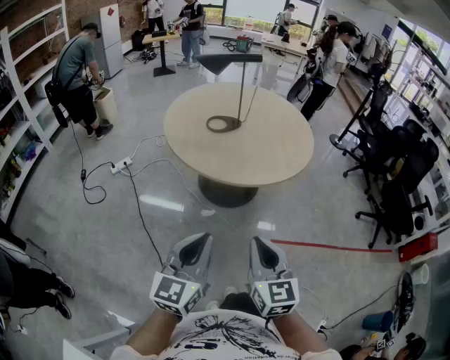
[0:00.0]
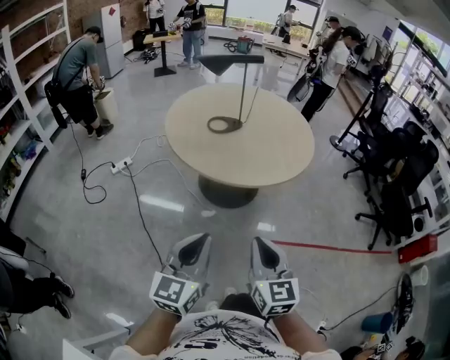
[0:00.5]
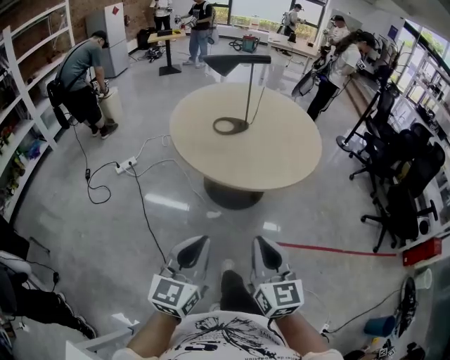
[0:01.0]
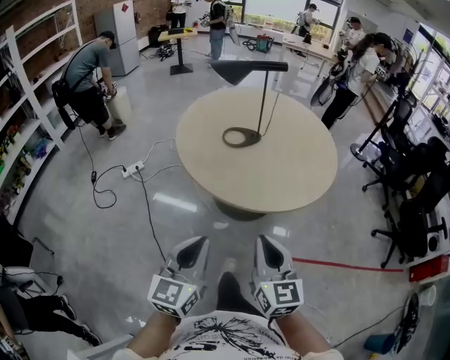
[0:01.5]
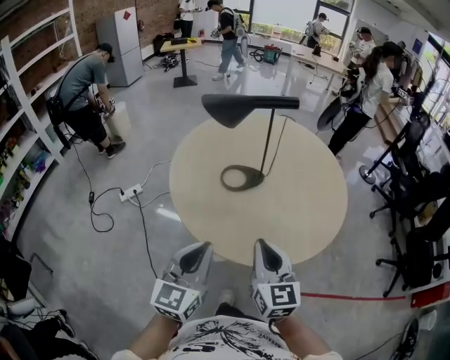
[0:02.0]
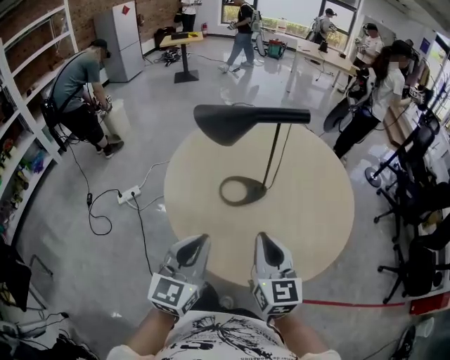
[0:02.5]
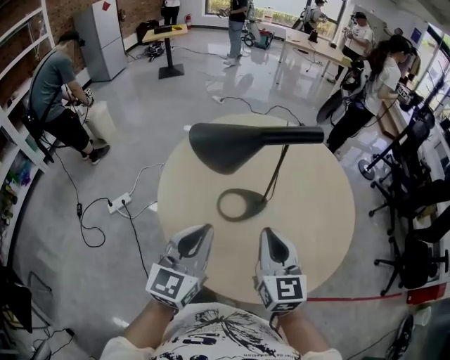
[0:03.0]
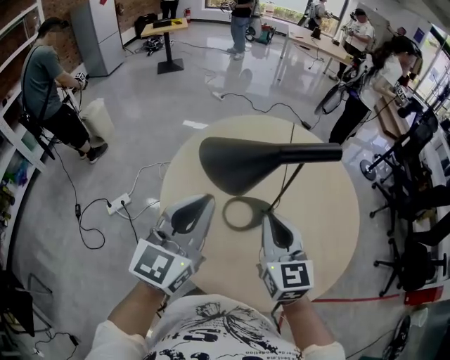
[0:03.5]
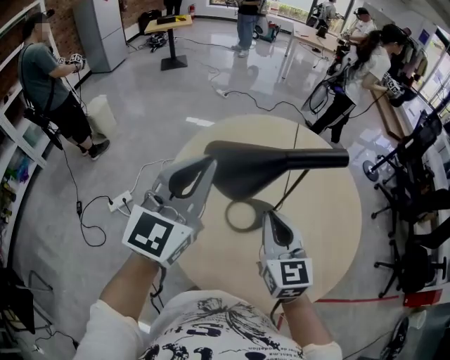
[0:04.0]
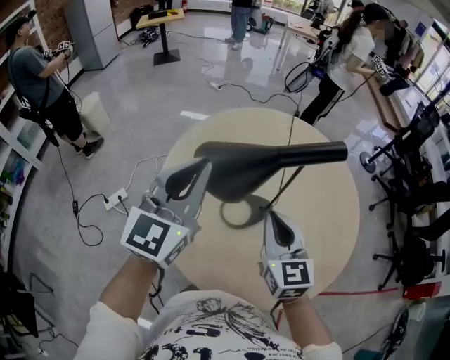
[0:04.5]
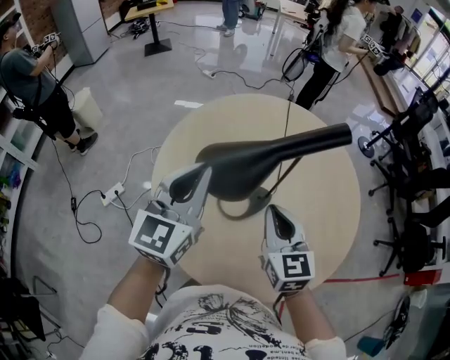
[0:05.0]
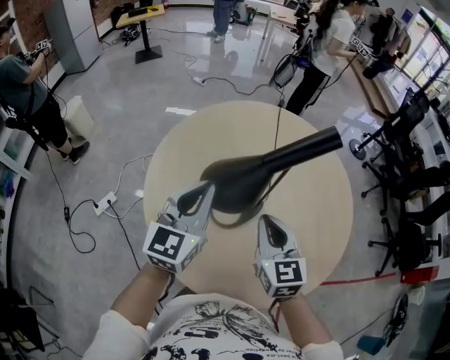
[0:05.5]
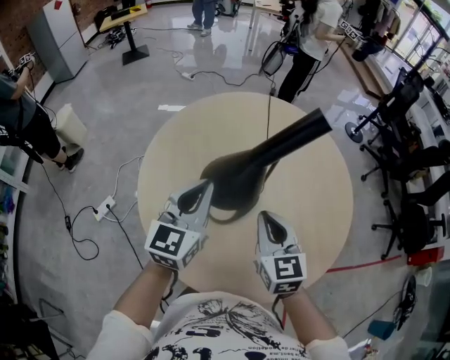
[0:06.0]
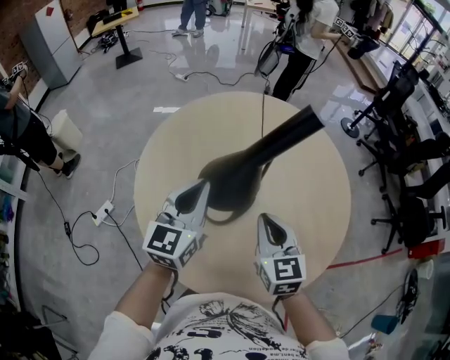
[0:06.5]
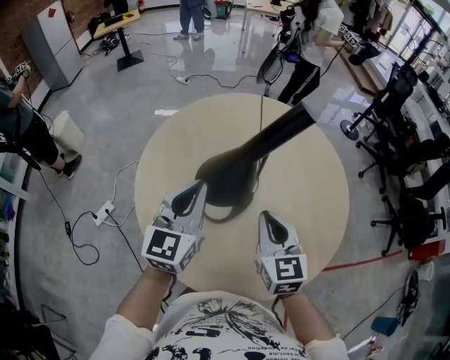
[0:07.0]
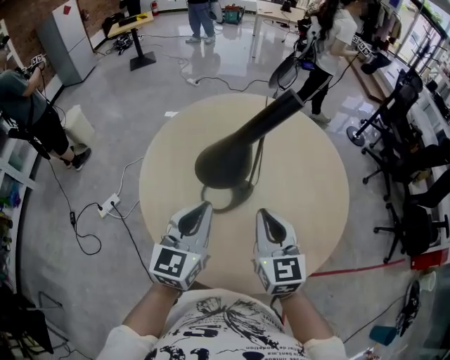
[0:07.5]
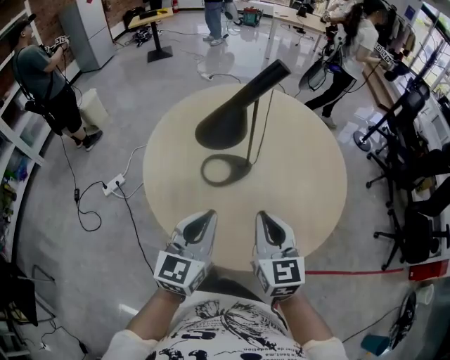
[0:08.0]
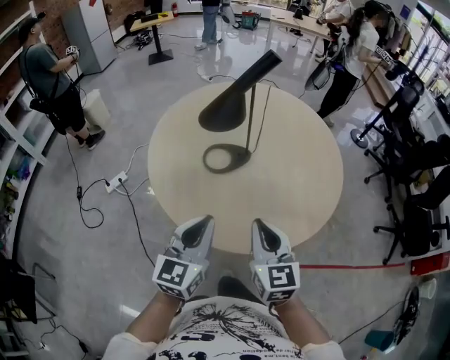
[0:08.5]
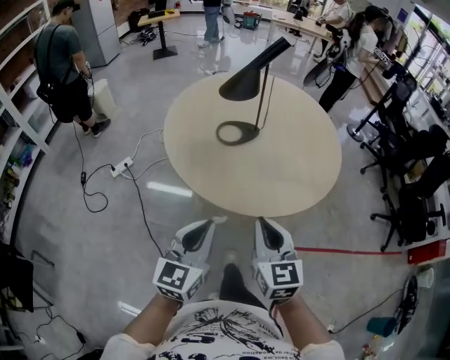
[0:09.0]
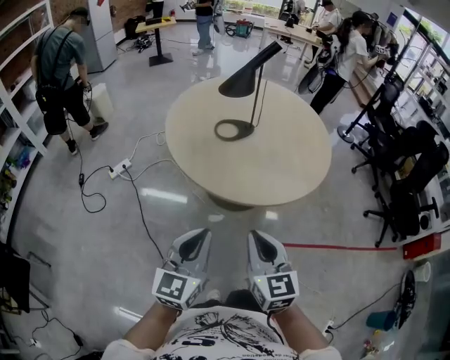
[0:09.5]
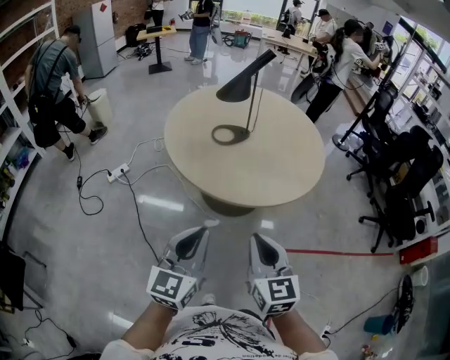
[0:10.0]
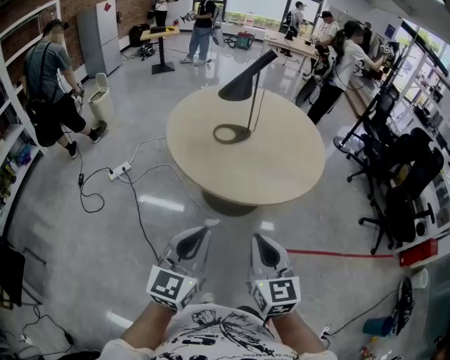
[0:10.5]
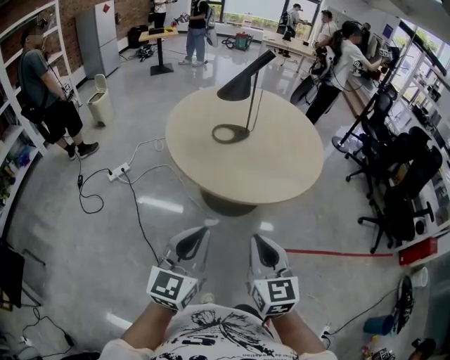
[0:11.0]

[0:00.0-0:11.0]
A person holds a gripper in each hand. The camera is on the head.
0:00.0 to 0:02.0: Both grippers move forward, approximately 35 cm.
0:02.0 to 0:03.5: The grippers both shift forward by roughly 30 cm.
0:03.5 to 0:05.5: The left gripper moves forward and downward, some 10 cm, while the right gripper travels downward by some 5 cm.
0:05.5 to 0:07.5: The left gripper travels backward and to the right by roughly 10 cm. The right gripper ends up about 5 cm from where it was.
0:07.5 to 0:09.0: The two grippers go about 35 cm backward.
0:09.0 to 0:11.0: Both grippers move backward, approximately 15 cm.

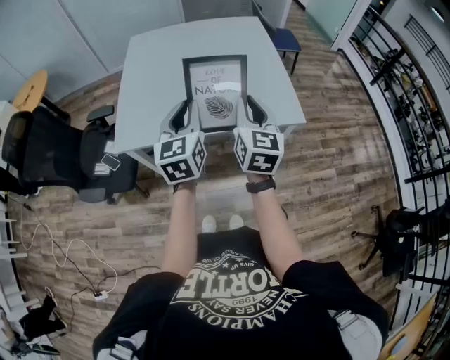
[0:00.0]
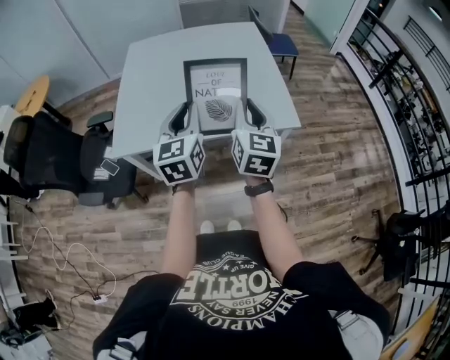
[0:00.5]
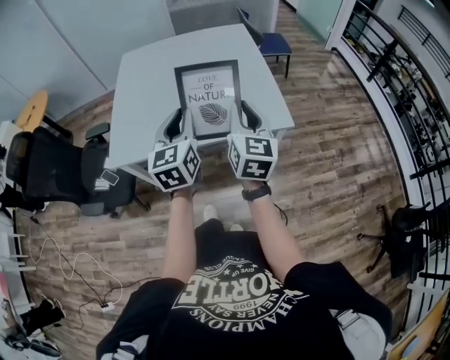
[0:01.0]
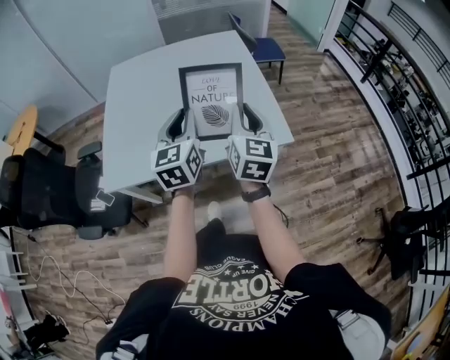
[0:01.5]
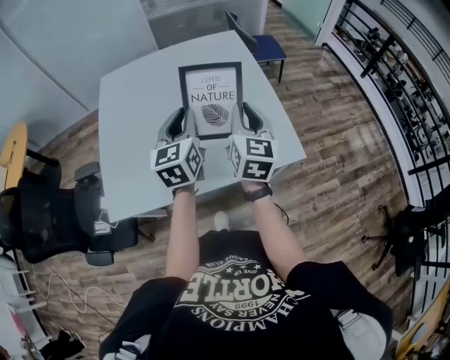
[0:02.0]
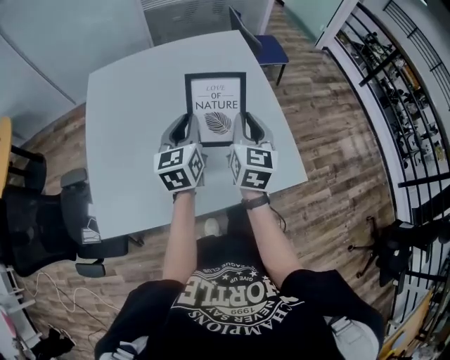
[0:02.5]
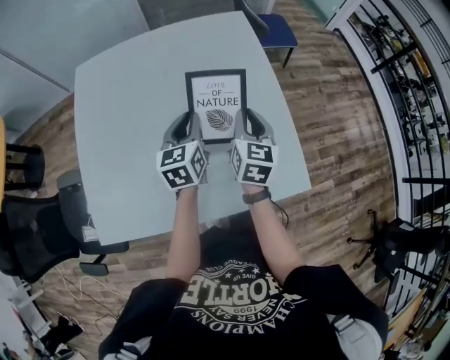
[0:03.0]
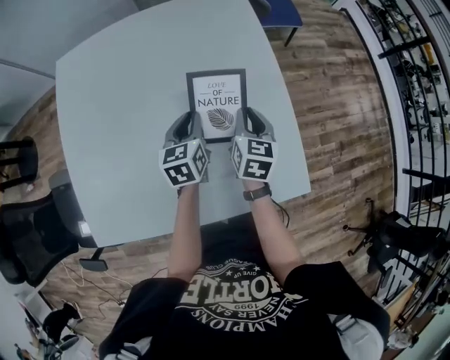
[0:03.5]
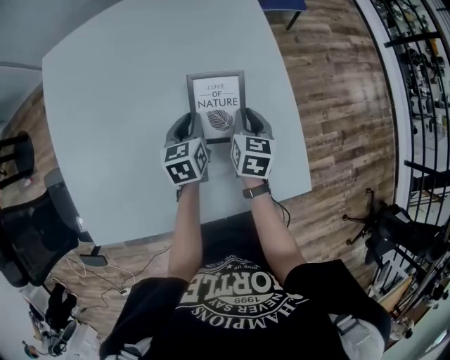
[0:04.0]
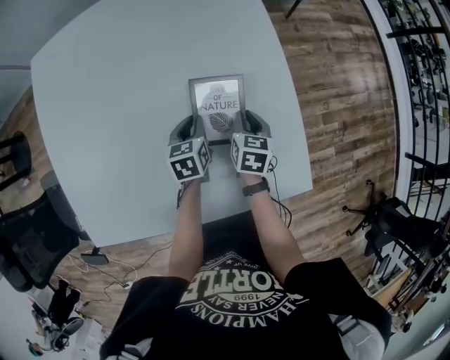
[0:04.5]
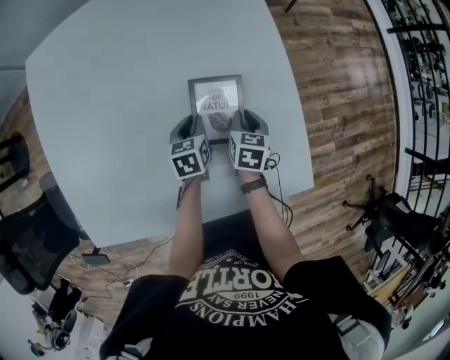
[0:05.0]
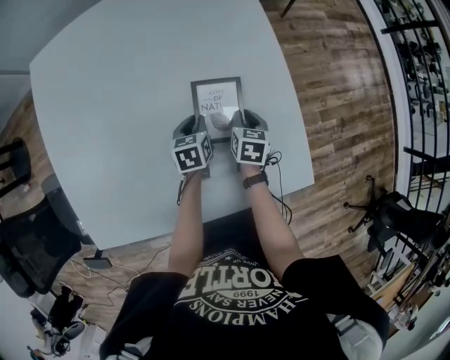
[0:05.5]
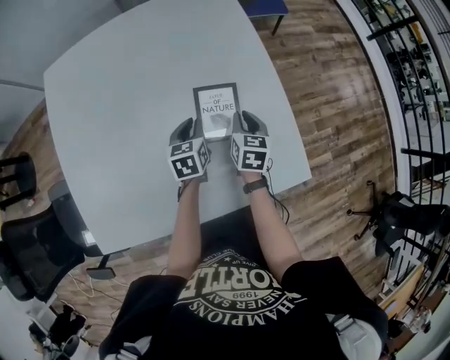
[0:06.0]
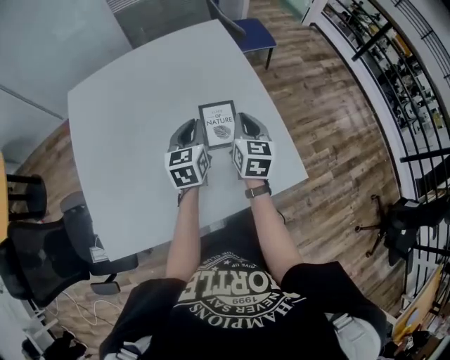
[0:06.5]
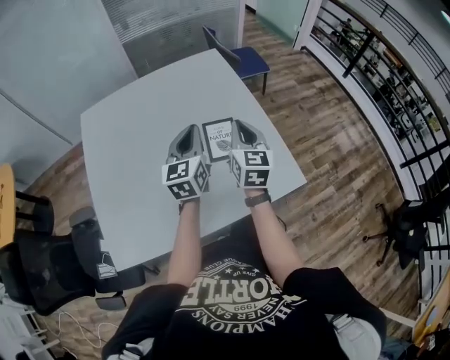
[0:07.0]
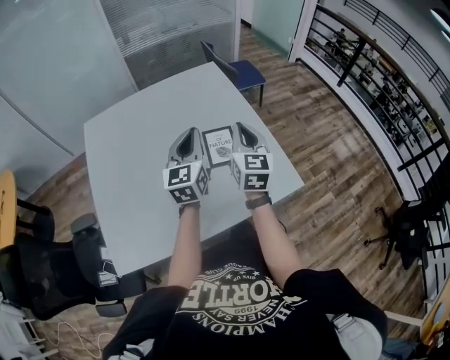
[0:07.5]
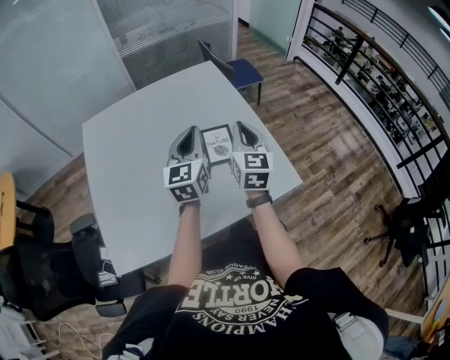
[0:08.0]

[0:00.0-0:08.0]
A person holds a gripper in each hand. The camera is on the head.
0:00.0 to 0:02.0: Both grippers move forward, approximately 25 cm.
0:02.0 to 0:04.0: The grippers both shift forward and downward by approximately 50 cm. The left gripper angles its fingers downward, by approximately 30 degrees, while the right gripper angles its fingers downward, by roughly 30 degrees.
0:04.0 to 0:06.0: The right gripper moves approximately 10 cm downward and comes back. The left gripper reaches about 10 cm downward, then returns.
0:06.0 to 0:08.0: The grippers both shift upward and backward by approximately 35 cm. The right gripper points its fingers roughly 30 degrees further upward. Meanwhile the left gripper points its fingers some 40 degrees further upward.

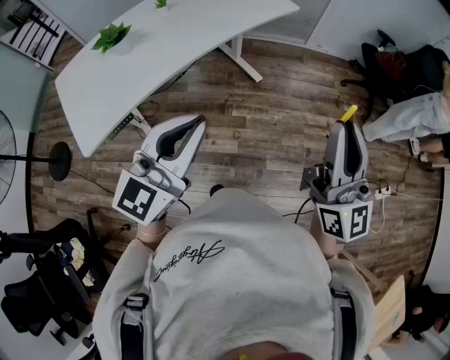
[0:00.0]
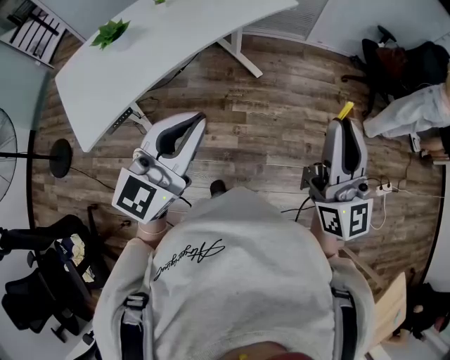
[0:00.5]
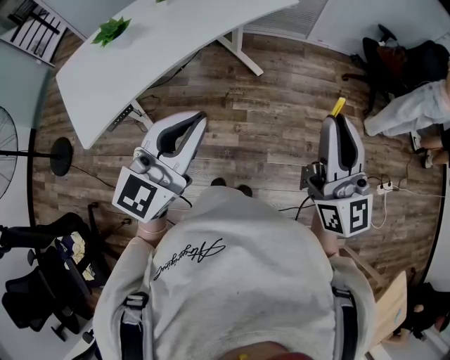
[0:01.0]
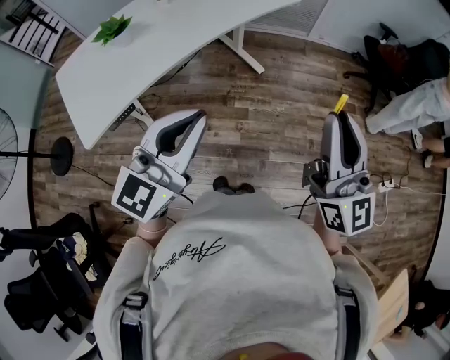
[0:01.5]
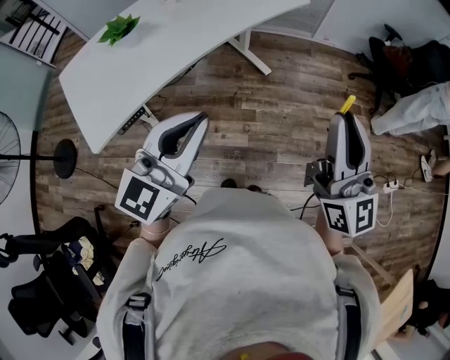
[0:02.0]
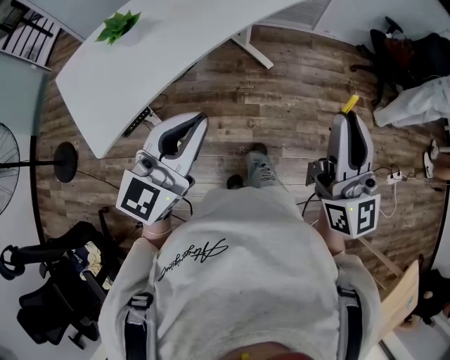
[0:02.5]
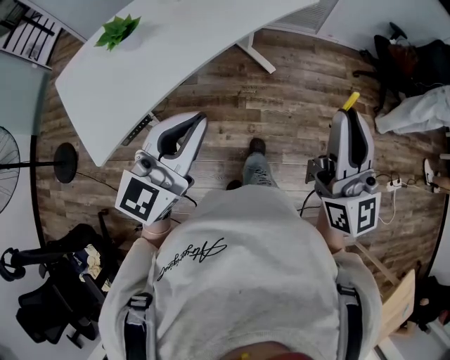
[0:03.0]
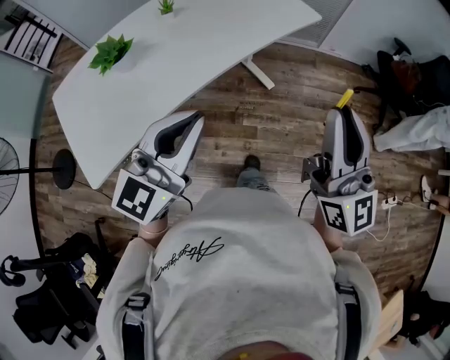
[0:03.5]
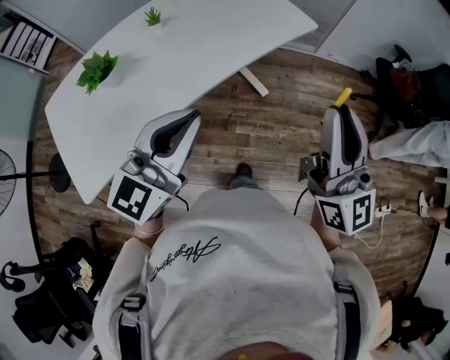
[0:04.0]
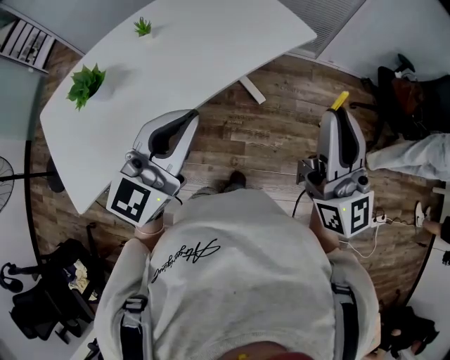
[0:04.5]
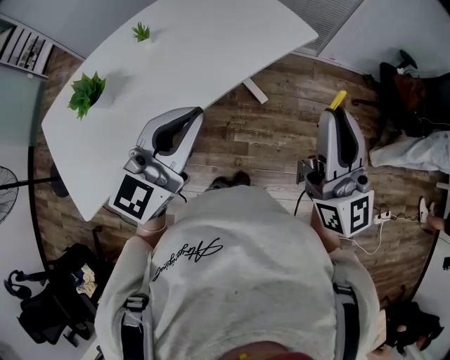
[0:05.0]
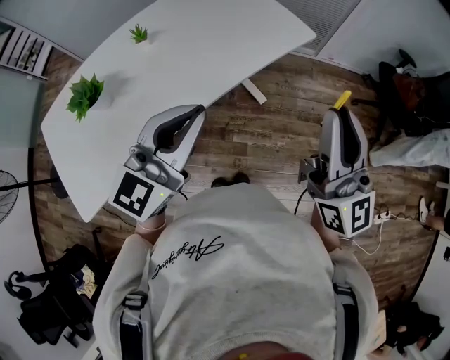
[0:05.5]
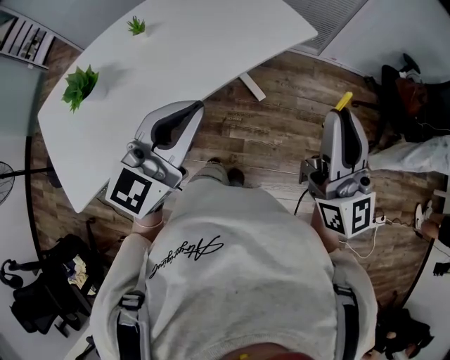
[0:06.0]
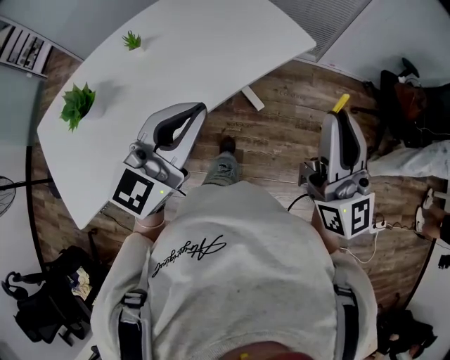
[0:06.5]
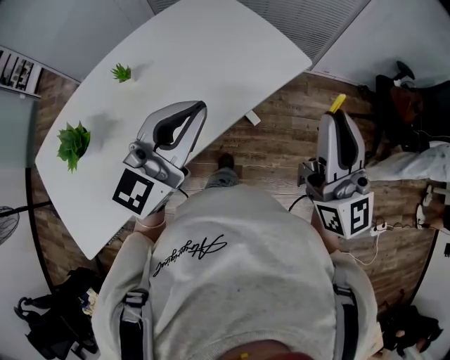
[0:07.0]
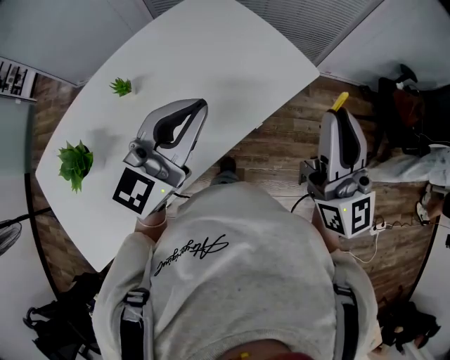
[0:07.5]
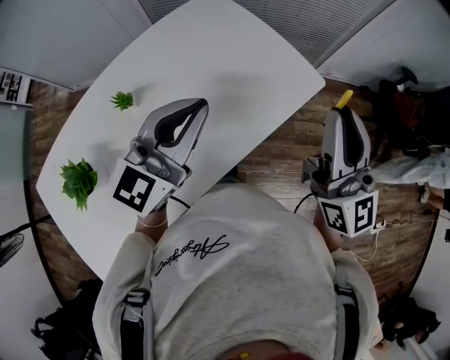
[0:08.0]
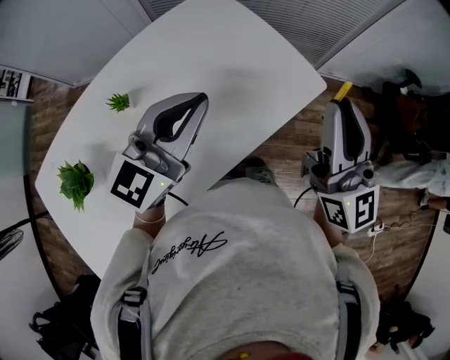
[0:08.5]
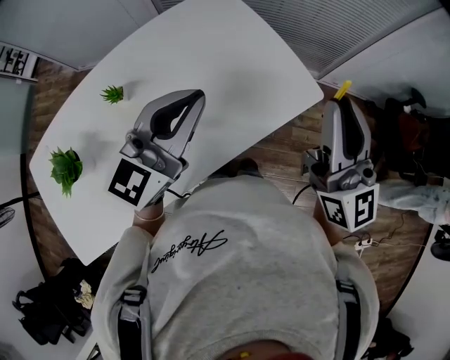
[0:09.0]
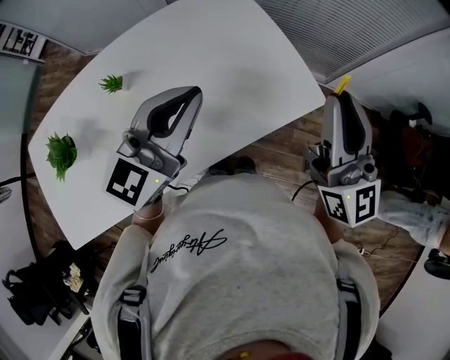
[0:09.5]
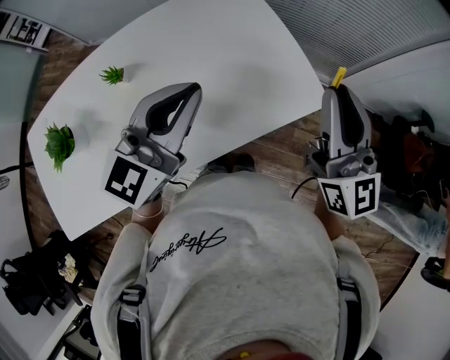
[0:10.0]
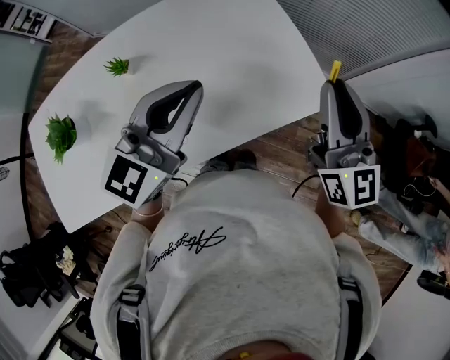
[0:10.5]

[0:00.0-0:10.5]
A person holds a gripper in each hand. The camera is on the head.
0:00.0 to 0:02.0: The right gripper goes about 5 cm to the left.
0:02.0 to 0:04.0: Both grippers move forward, about 20 cm.
0:04.0 to 0:06.5: Both grippers travel together forward, about 15 cm.
0:06.5 to 0:08.5: The two grippers go some 20 cm forward.
0:08.5 to 0:10.5: The right gripper goes about 10 cm forward and downward.
